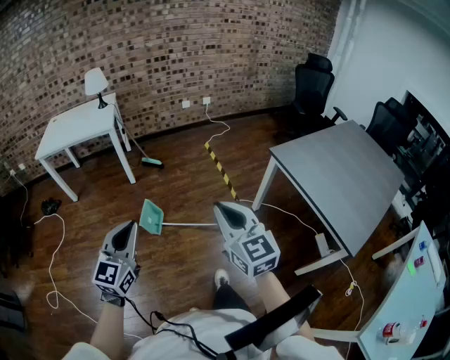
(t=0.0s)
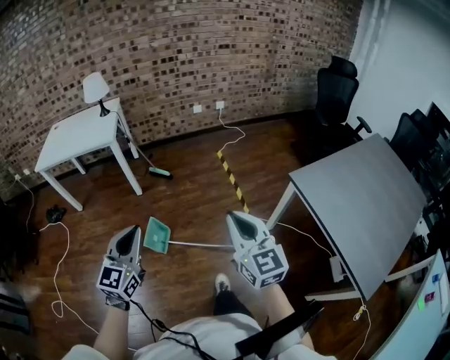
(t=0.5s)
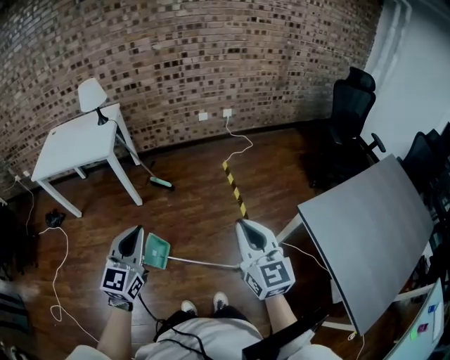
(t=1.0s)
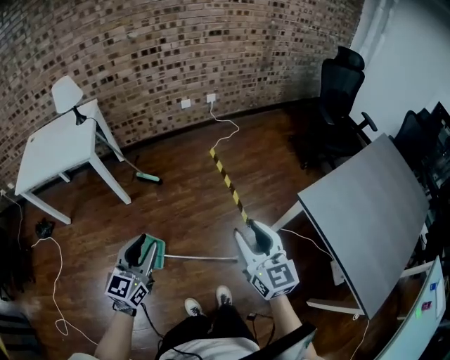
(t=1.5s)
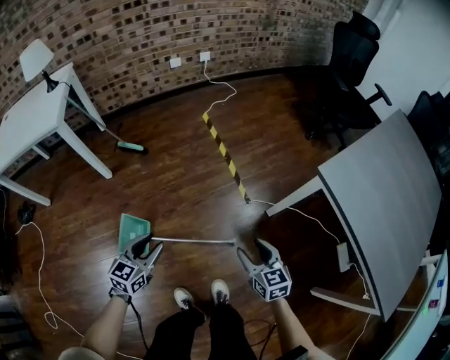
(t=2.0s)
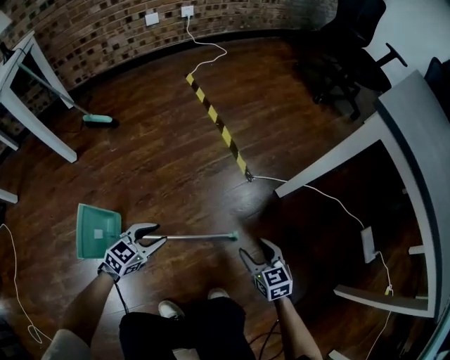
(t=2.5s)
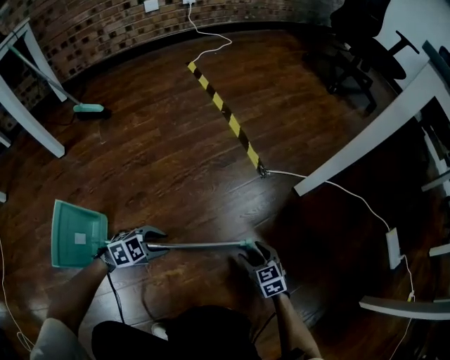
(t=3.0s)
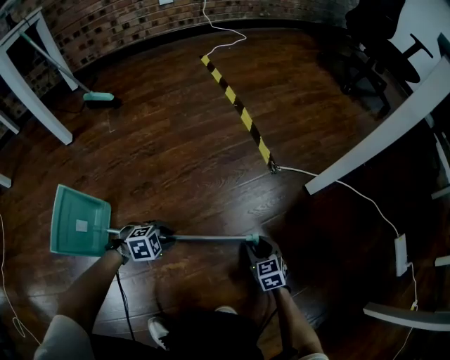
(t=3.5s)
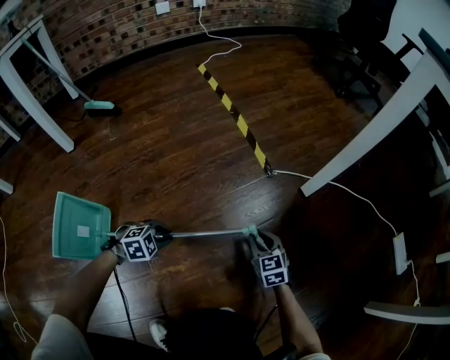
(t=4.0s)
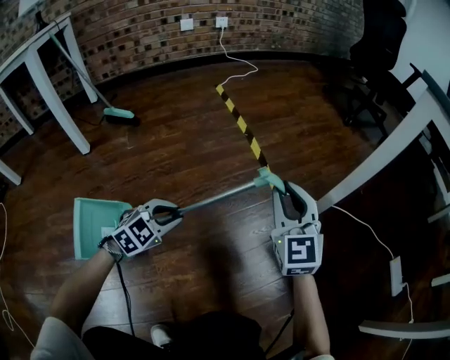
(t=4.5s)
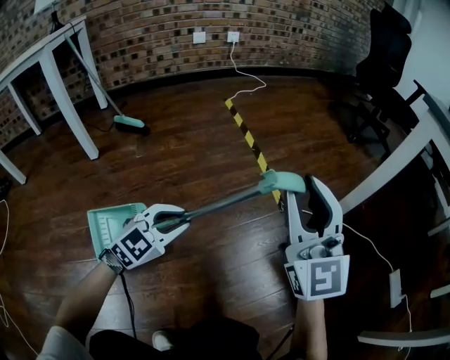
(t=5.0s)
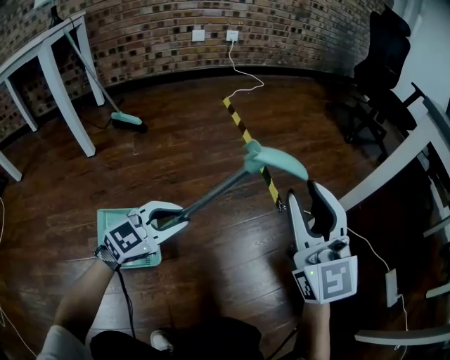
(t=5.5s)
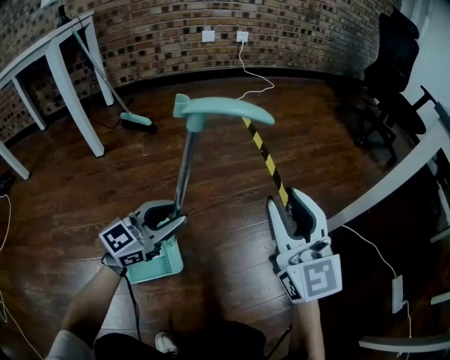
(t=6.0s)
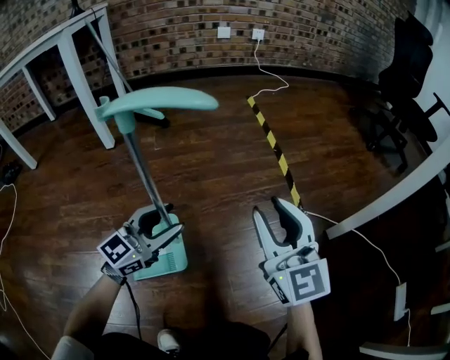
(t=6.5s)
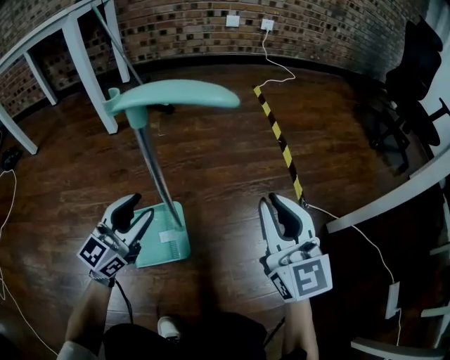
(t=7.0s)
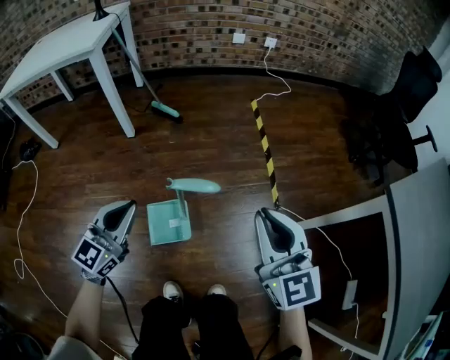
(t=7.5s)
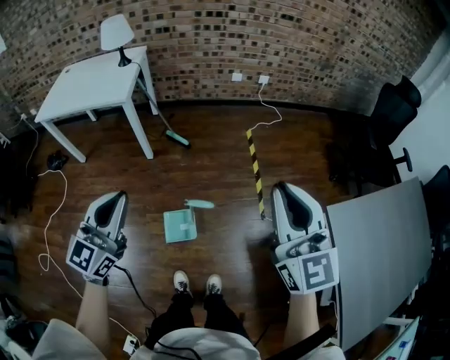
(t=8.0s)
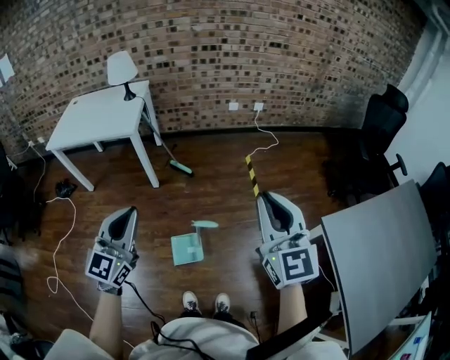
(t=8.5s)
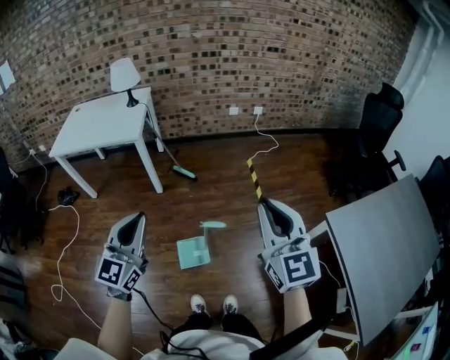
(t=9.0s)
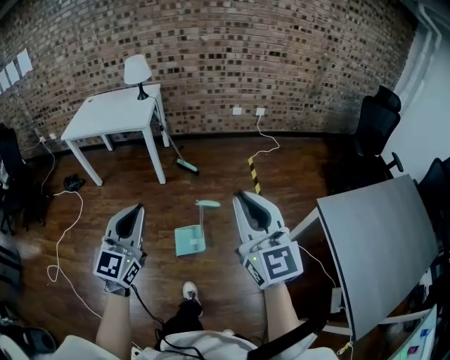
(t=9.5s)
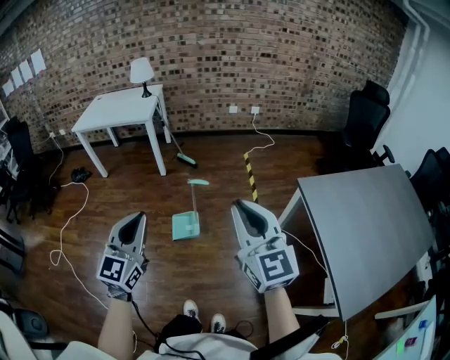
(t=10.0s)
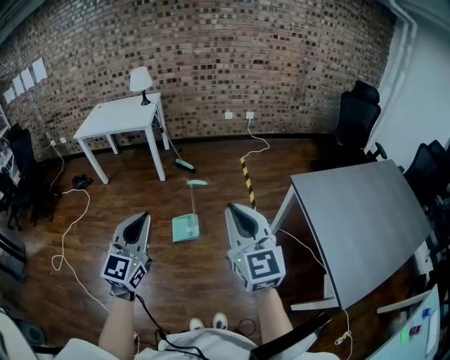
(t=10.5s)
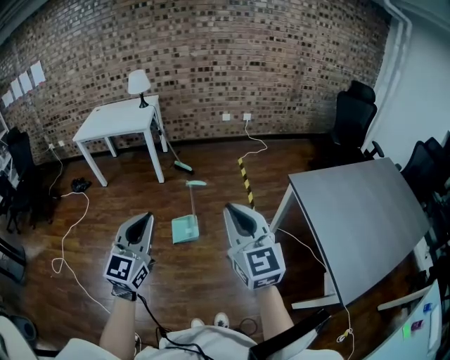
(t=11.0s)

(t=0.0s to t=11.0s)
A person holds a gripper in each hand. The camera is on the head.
t=0.0s - t=2.0s: The left gripper heads forward and downward, covering some 60 cm, changes its angle by roughly 30 degrees, and opens, while the right gripper moves downward and forward, approximately 50 cm, changes its angle by some 30 degrees, and opens up.
t=2.0s - t=3.5s: Both grippers travel together downward, some 60 cm. The left gripper angles its fingers downward, by roughly 40 degrees.
t=3.5s - t=5.5s: The left gripper goes about 30 cm upward, and angles its fingers upward, by approximately 50 degrees. Meanwhile the right gripper shifts approximately 50 cm upward, and tips its fingers upward by about 60 degrees.
t=5.5s - t=7.5s: The right gripper shifts roughly 20 cm upward, changes its angle by some 20 degrees, and closes up. The left gripper heads upward, covering approximately 30 cm, rotates approximately 40 degrees, and closes.
t=7.5s - t=9.0s: The grippers both shift upward by some 40 cm.
t=9.0s - t=11.0s: Both grippers travel together backward, approximately 35 cm.

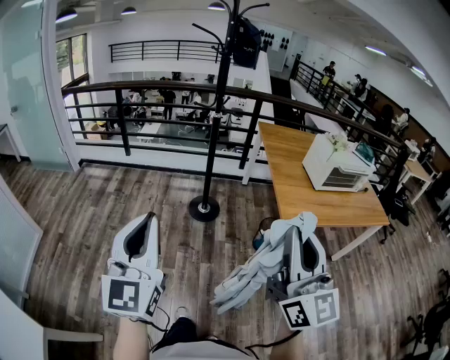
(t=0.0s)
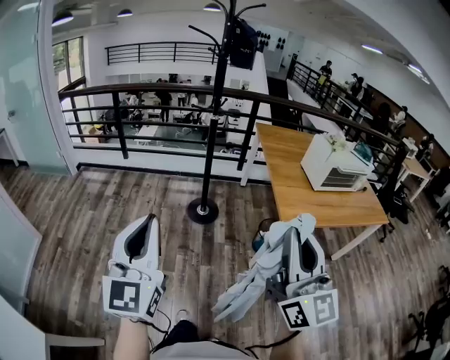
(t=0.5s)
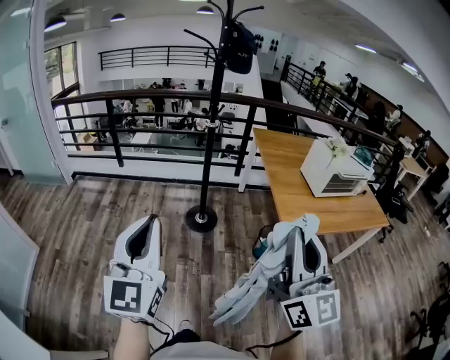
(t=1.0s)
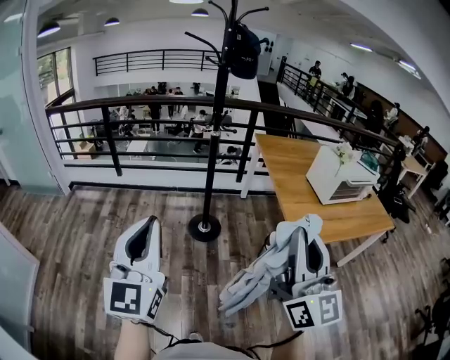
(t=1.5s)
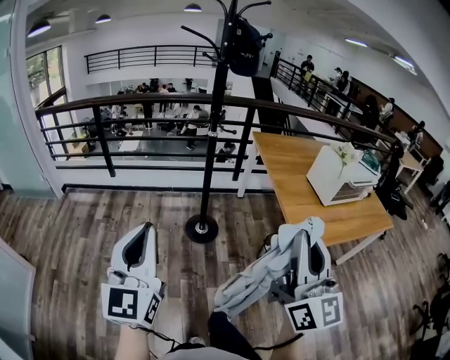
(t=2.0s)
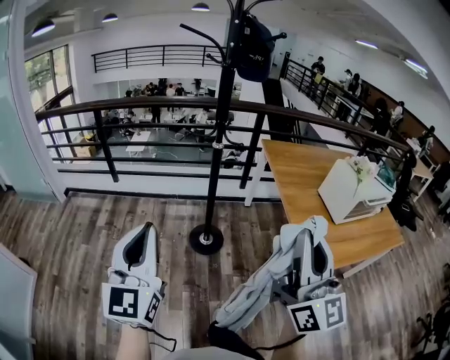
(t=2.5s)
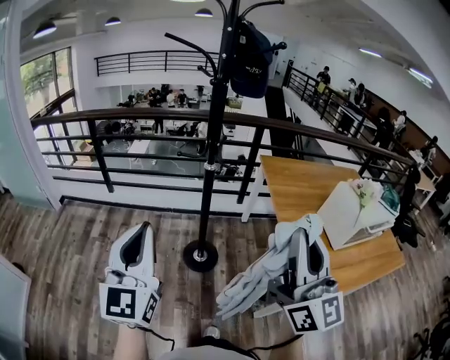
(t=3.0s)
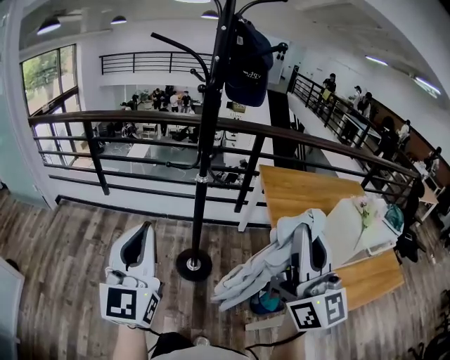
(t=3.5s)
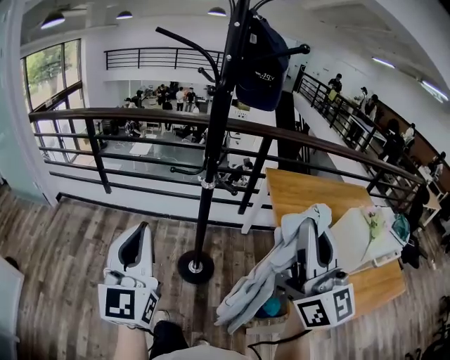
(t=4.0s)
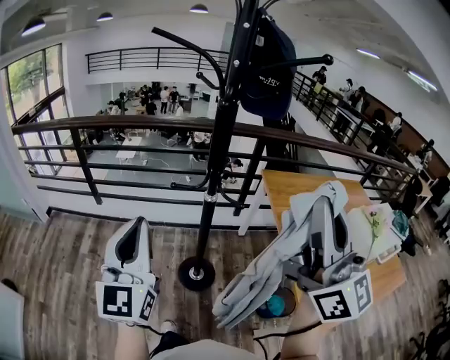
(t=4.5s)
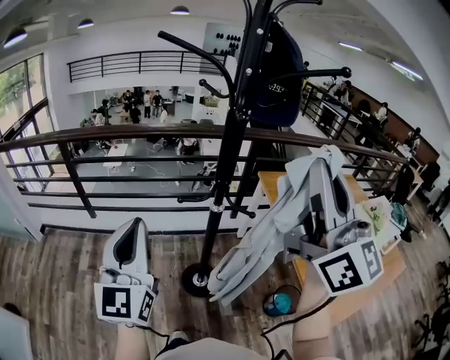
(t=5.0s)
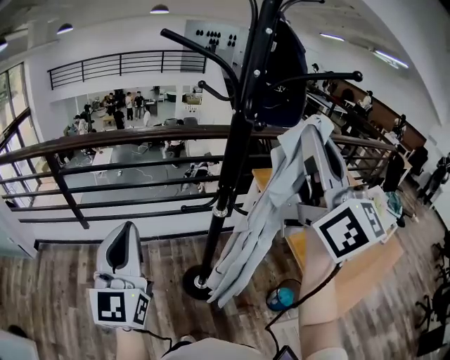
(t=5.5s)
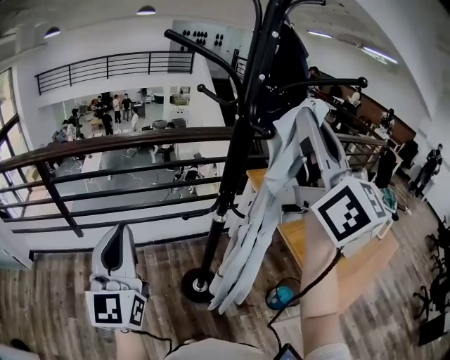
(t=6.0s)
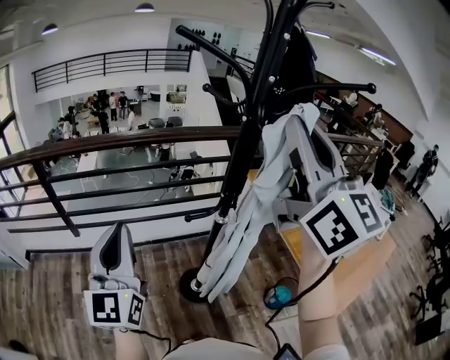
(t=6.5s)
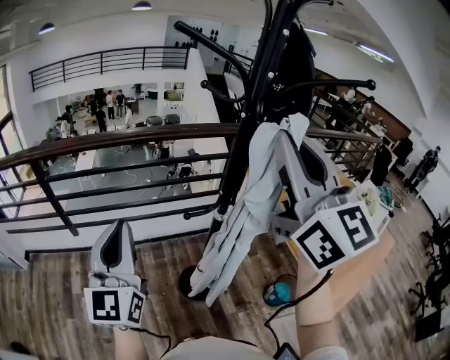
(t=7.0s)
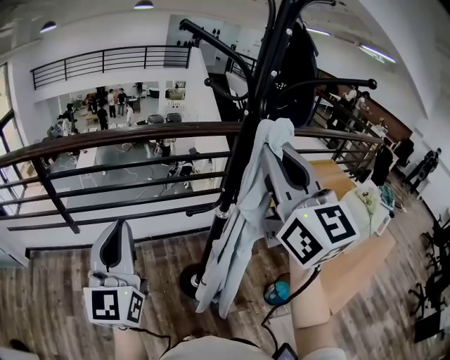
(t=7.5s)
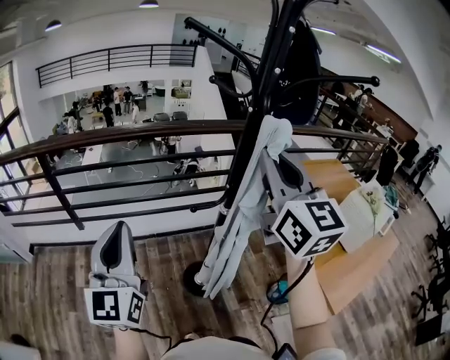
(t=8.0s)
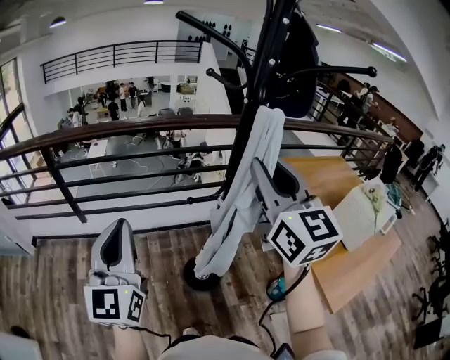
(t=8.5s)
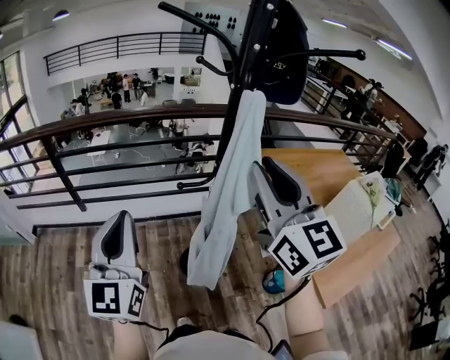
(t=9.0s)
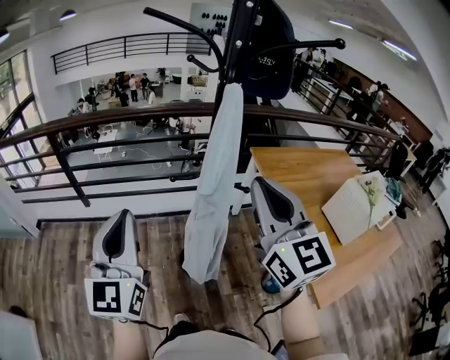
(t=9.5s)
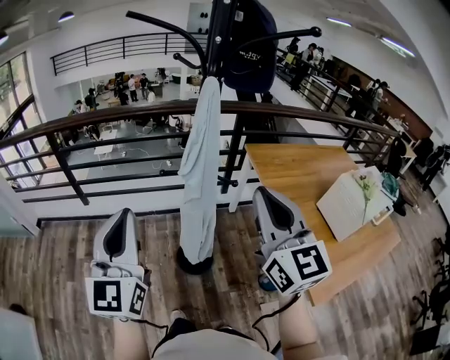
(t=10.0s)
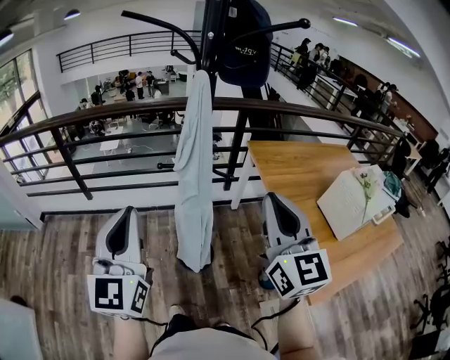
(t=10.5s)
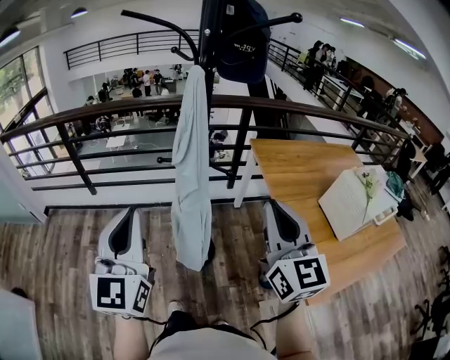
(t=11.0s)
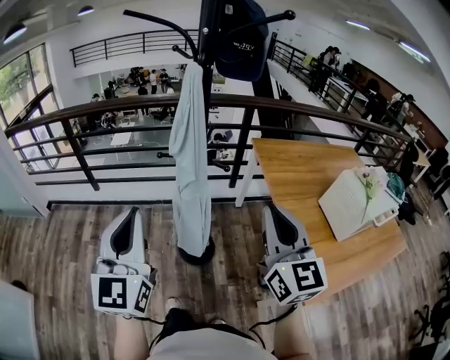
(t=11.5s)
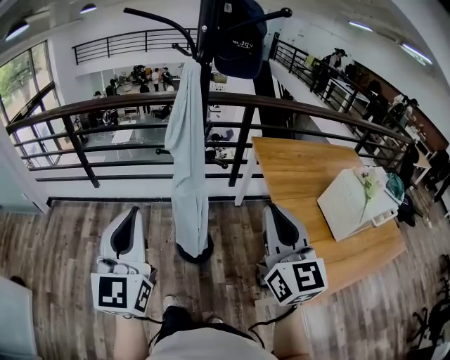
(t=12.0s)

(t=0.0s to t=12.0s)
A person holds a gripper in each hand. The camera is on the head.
t=0.0s - t=2.0s: The two grippers go roughly 20 cm forward.
t=2.0s - t=4.0s: The grippers both shift forward by approximately 35 cm.
t=4.0s - t=6.0s: The left gripper goes roughly 30 cm forward and to the left. The right gripper moves forward, to the left and upward, about 30 cm.
t=6.0s - t=8.0s: The right gripper heads downward, covering about 10 cm.
t=8.0s - t=10.0s: The left gripper goes some 15 cm to the right and backward, while the right gripper moves backward, to the right and downward, approximately 20 cm.
t=10.0s - t=12.0s: The left gripper goes approximately 10 cm backward and to the right; the right gripper travels to the right and backward by some 10 cm.

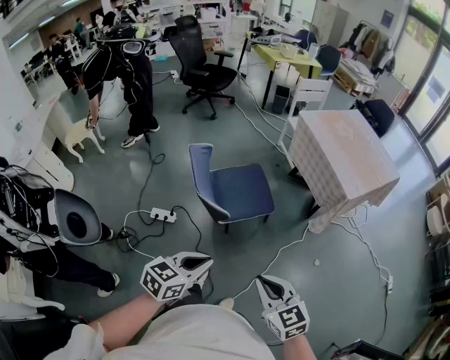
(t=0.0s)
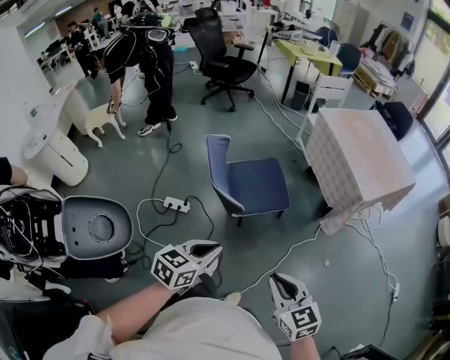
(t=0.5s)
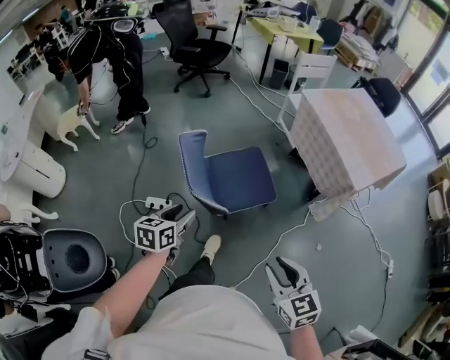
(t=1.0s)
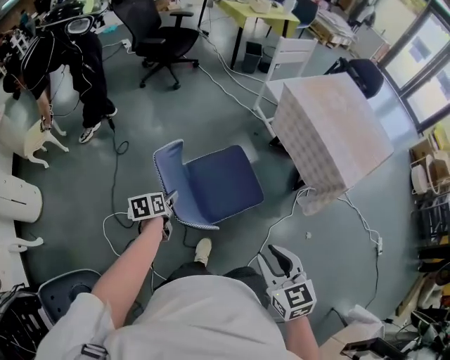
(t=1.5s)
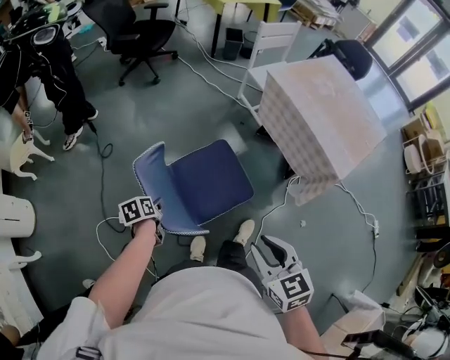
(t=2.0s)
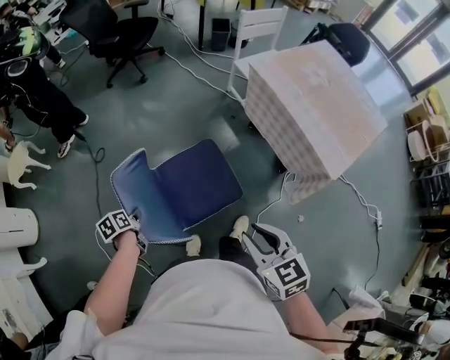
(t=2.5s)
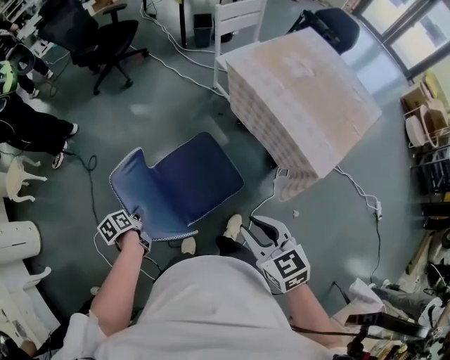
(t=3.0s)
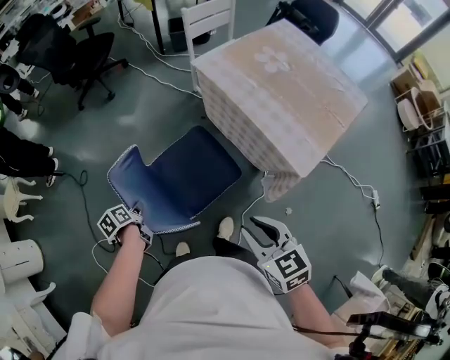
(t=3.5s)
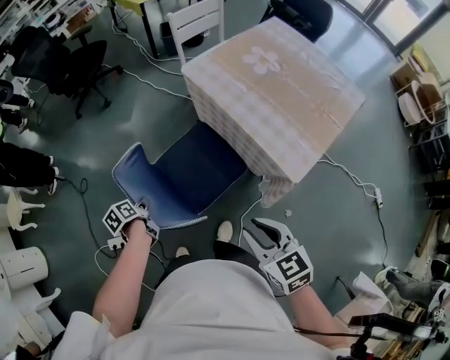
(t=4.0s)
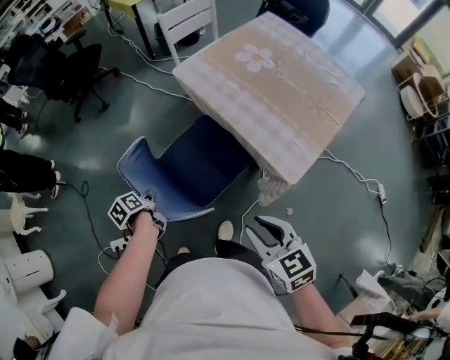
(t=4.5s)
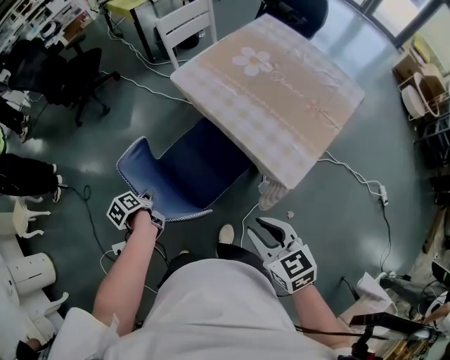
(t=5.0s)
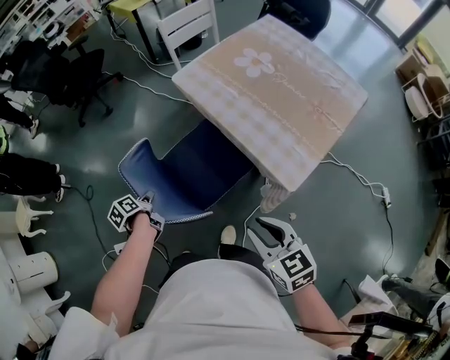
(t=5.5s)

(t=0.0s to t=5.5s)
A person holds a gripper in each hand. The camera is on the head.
t=0.0s - t=2.0s: The left gripper shifts about 50 cm forward, downward and to the left, turns by approximately 50 degrees, and opens. The right gripper is displaced forward by approximately 30 cm, and opens.
t=2.0s - t=3.5s: The two grippers go about 25 cm to the right and forward. The left gripper closes its fingers.
t=3.5s - t=5.5s: The right gripper moves to the right, roughly 10 cm. The left gripper travels to the right and forward by about 15 cm.
